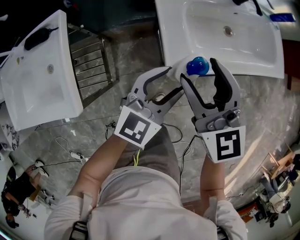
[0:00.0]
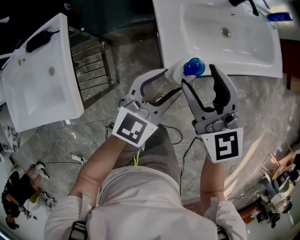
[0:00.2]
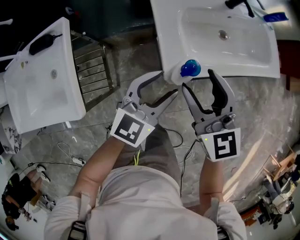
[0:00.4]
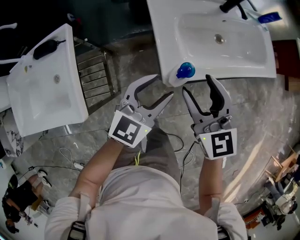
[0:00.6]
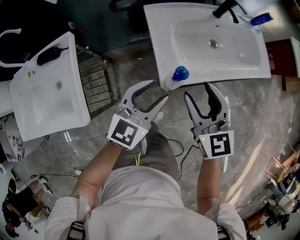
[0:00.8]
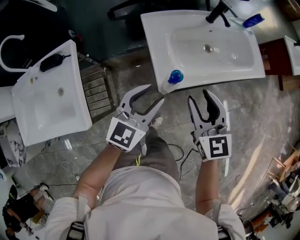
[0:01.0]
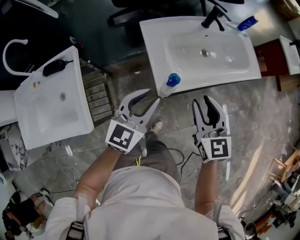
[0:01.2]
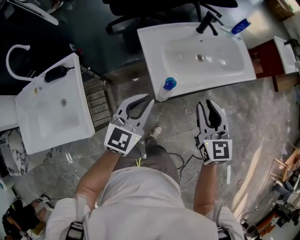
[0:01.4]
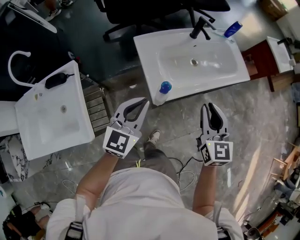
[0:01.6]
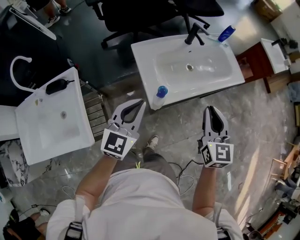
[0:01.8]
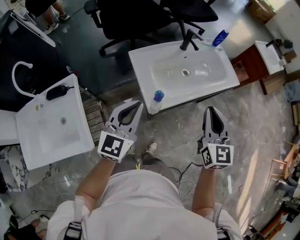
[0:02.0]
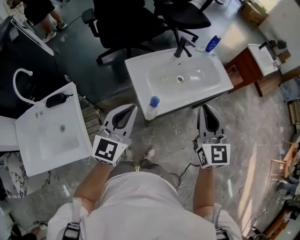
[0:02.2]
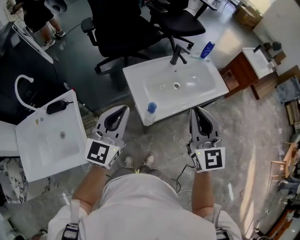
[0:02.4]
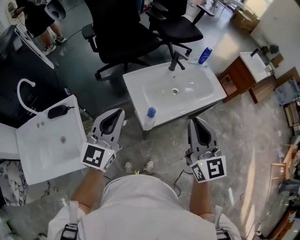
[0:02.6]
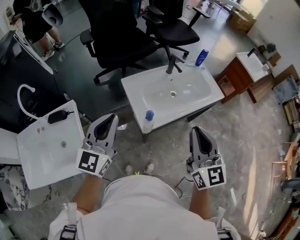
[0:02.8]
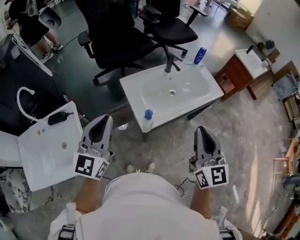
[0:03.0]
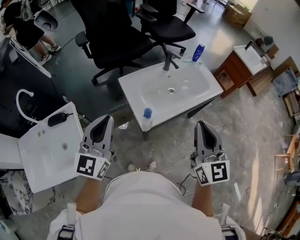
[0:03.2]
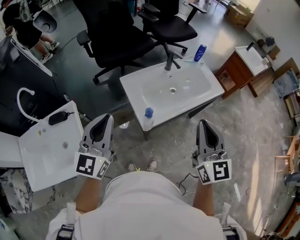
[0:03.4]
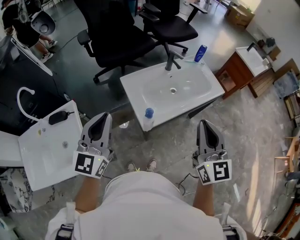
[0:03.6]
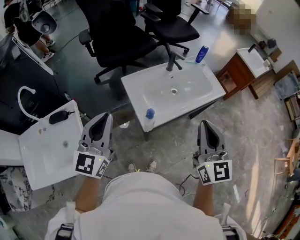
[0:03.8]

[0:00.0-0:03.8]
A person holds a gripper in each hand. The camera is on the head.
0:00.0 to 0:01.2: The left gripper goes some 10 cm upward, and closes, while the right gripper goes approximately 10 cm to the right and backward, and closes up.
0:01.2 to 0:02.6: The grippers both shift upward by some 20 cm. The left gripper closes up, while the right gripper rotates about 20 degrees, and closes.
0:02.6 to 0:03.8: The grippers stay close to where they were, moving slightly.

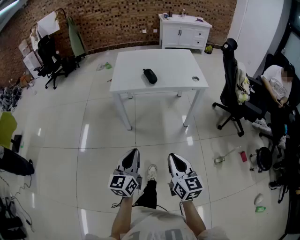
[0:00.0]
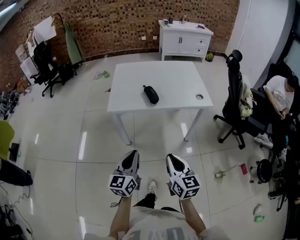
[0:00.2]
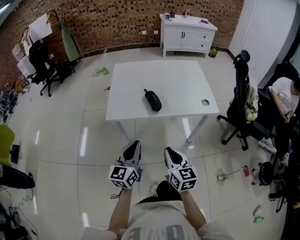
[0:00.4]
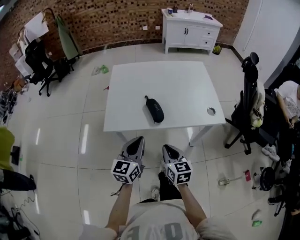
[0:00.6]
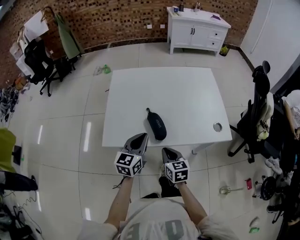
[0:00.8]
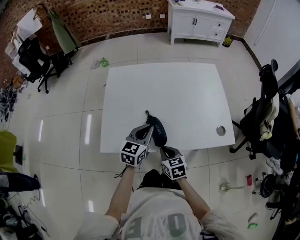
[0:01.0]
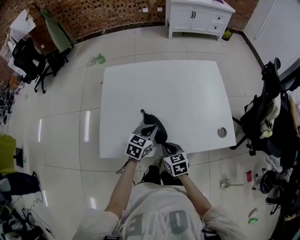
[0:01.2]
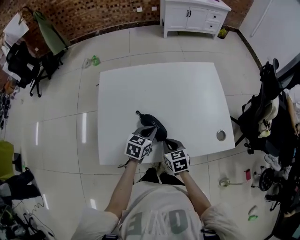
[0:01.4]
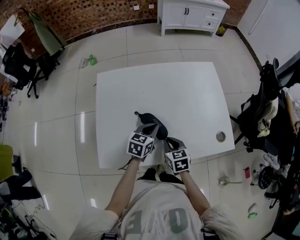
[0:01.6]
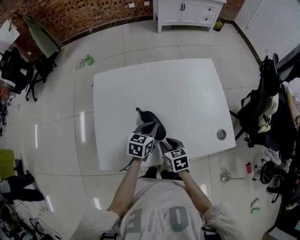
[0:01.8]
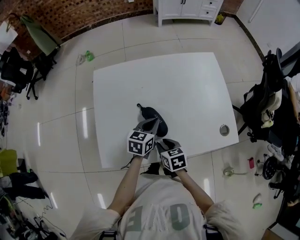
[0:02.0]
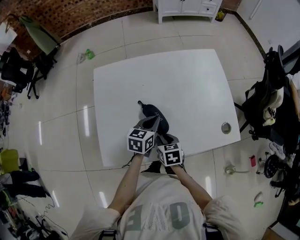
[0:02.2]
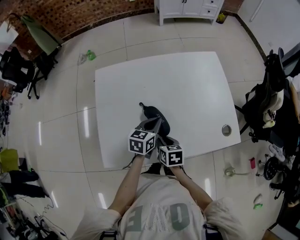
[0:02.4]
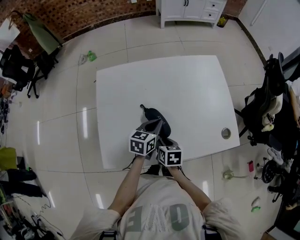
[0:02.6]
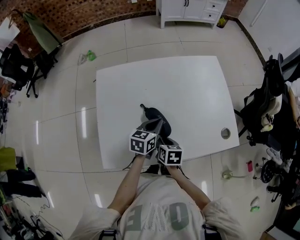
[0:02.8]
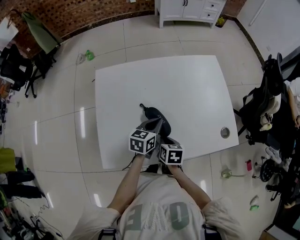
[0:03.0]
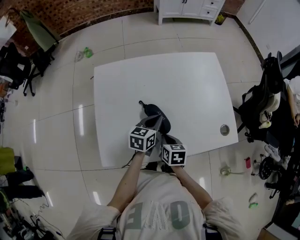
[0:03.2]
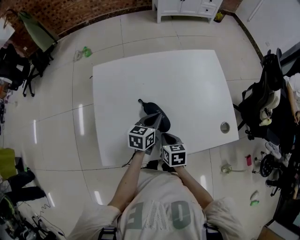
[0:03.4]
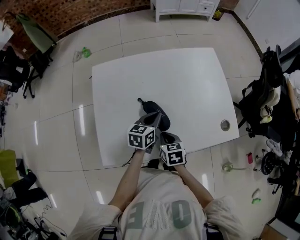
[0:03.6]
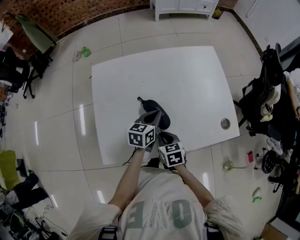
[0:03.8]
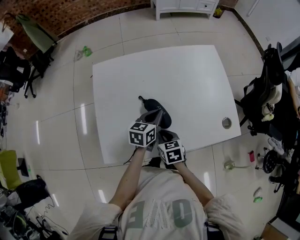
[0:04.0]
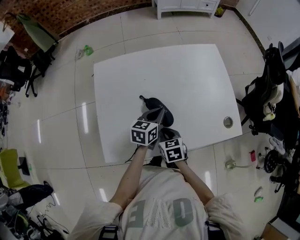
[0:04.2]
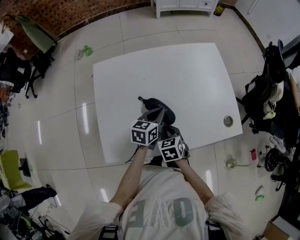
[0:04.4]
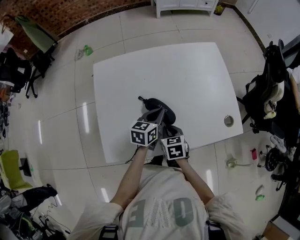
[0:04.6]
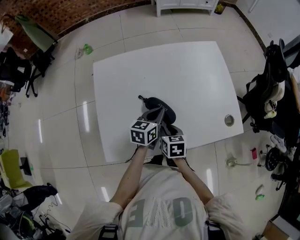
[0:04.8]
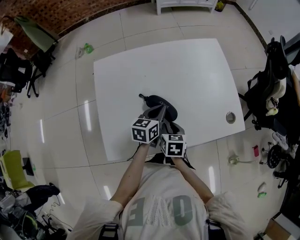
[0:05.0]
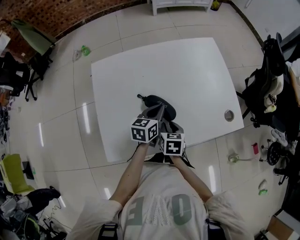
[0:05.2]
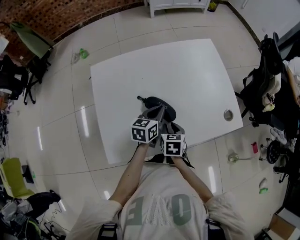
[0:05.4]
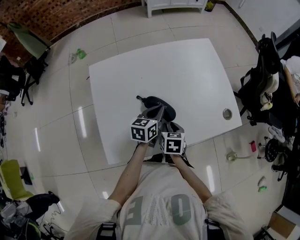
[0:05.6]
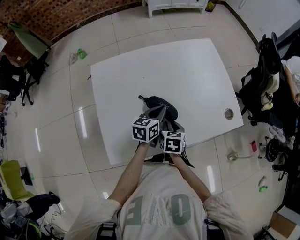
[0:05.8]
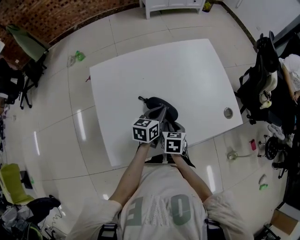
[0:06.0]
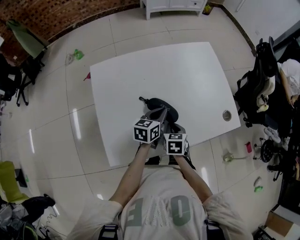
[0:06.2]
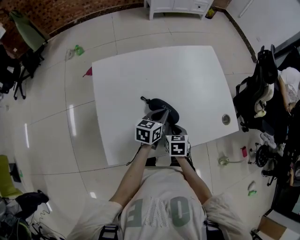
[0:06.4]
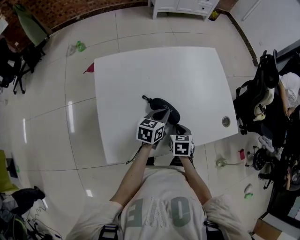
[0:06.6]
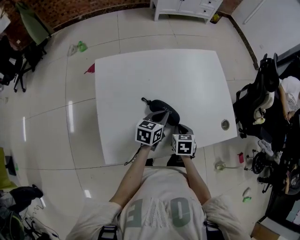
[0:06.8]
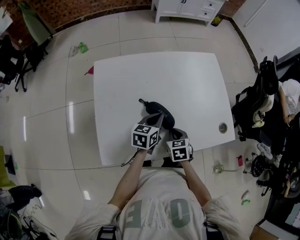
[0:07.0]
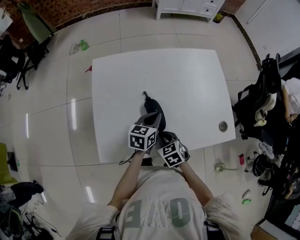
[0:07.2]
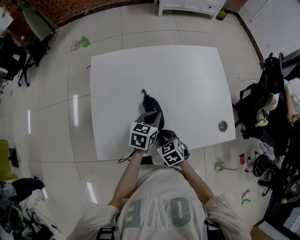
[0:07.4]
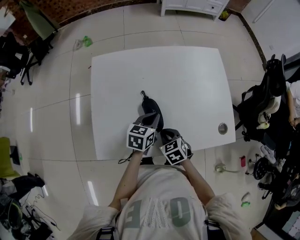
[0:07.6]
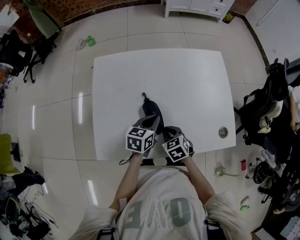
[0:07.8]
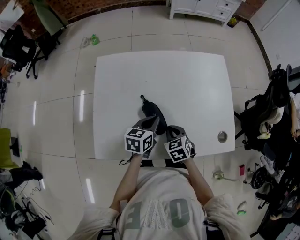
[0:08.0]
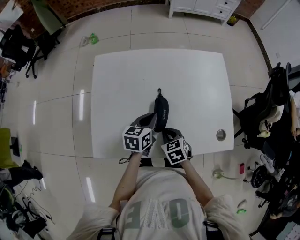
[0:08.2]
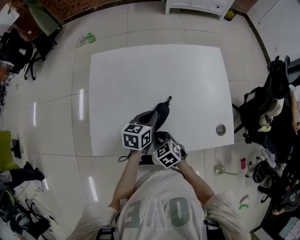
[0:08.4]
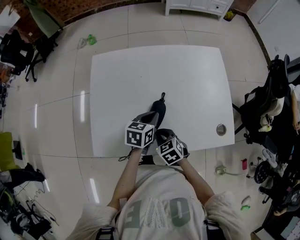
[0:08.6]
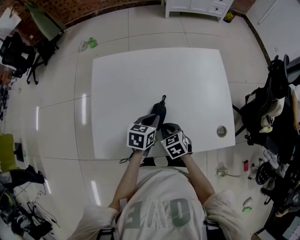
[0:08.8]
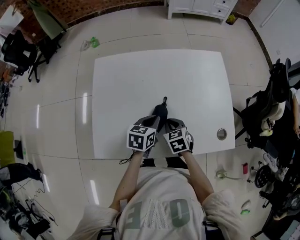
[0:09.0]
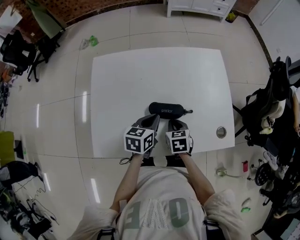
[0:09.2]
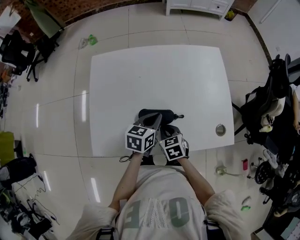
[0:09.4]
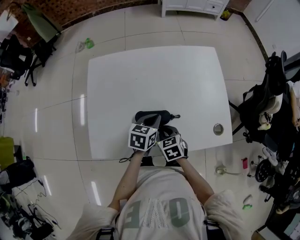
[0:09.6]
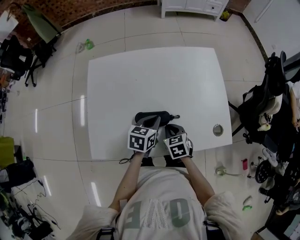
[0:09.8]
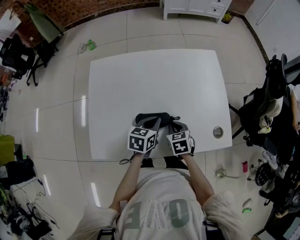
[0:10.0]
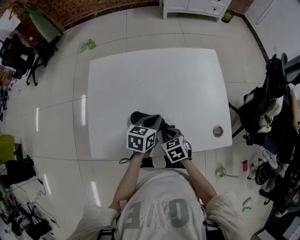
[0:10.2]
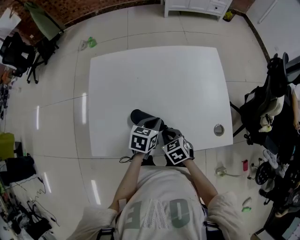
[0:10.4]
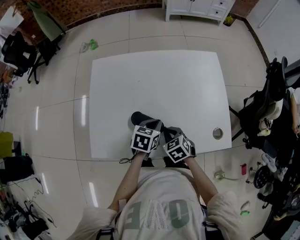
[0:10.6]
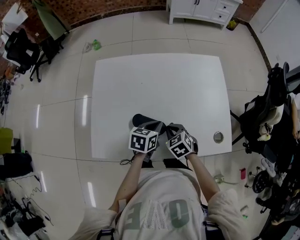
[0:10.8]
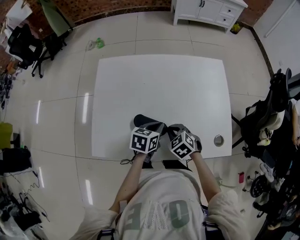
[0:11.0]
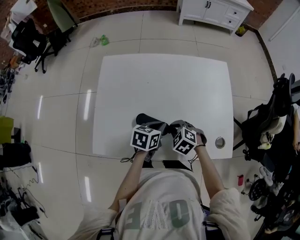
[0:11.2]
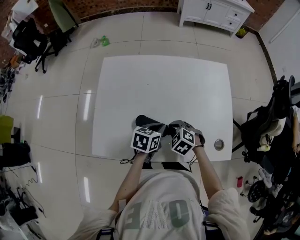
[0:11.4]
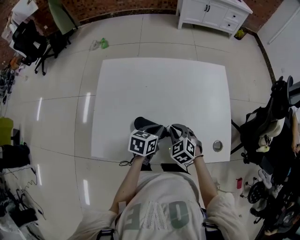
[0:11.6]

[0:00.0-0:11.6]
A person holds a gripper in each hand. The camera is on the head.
0:00.0 to 0:01.4: The two grippers travel together, forward, roughly 70 cm. The left gripper angles its fingers downward, by approximately 30 degrees, while the right gripper points its fingers about 30 degrees further downward.
0:01.4 to 0:02.8: The right gripper turns by some 30 degrees, and opens up.
0:02.8 to 0:04.4: The right gripper swivels approximately 30 degrees, and closes up.
0:04.4 to 0:05.8: The right gripper turns by about 30 degrees, and opens its fingers.
0:05.8 to 0:07.2: The right gripper swivels approximately 40 degrees, and closes up.
0:07.2 to 0:08.8: The right gripper moves left and right over approximately 5 cm, changing direction 2 times.
0:10.2 to 0:11.6: The right gripper is displaced forward by some 5 cm, and changes its angle by about 30 degrees.

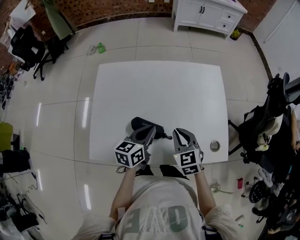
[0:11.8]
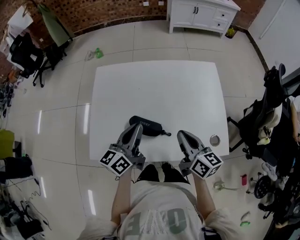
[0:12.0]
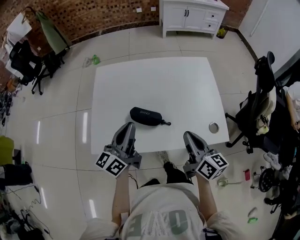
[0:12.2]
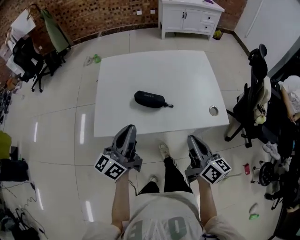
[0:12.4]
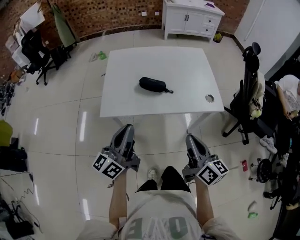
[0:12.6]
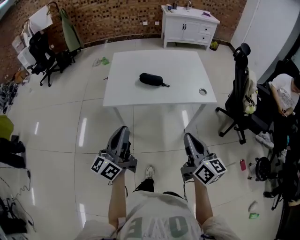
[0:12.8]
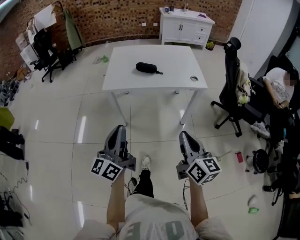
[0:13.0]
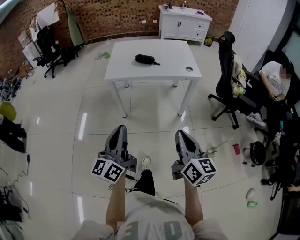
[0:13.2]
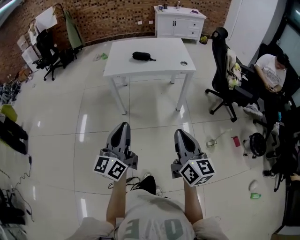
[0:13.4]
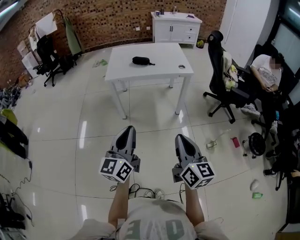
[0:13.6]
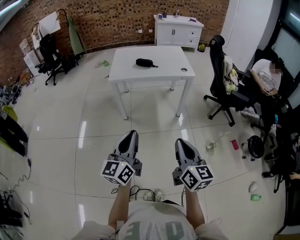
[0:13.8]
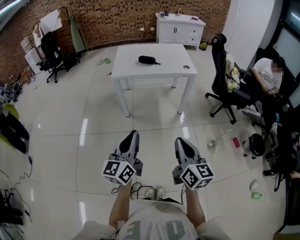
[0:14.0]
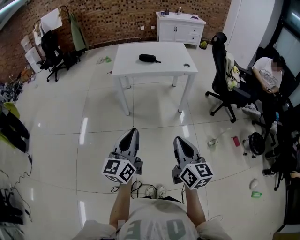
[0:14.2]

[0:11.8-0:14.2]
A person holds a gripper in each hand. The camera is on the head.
0:11.8 to 0:13.0: The pair of grippers is taken backward, some 70 cm. The left gripper points its fingers about 40 degrees further upward, while the right gripper tilts its fingers roughly 30 degrees upward.
0:13.0 to 0:14.2: The two grippers go about 30 cm backward.

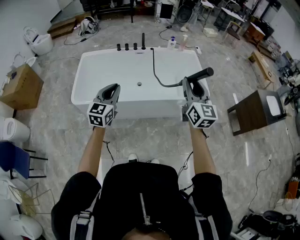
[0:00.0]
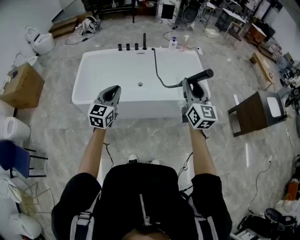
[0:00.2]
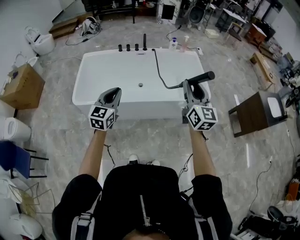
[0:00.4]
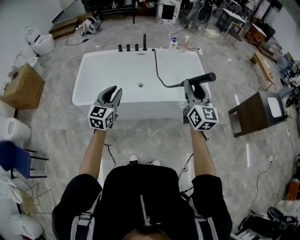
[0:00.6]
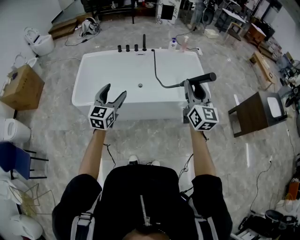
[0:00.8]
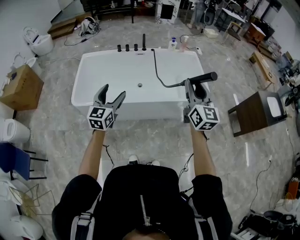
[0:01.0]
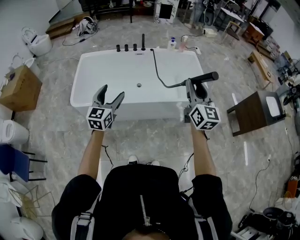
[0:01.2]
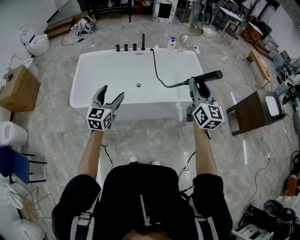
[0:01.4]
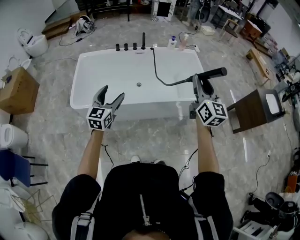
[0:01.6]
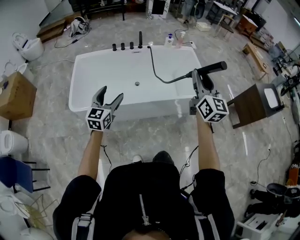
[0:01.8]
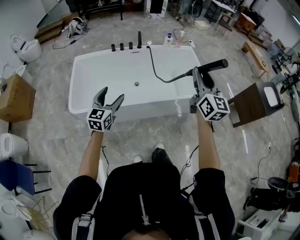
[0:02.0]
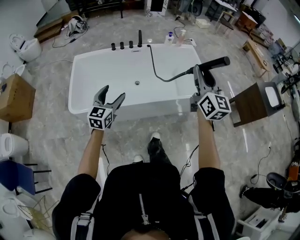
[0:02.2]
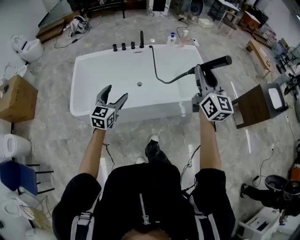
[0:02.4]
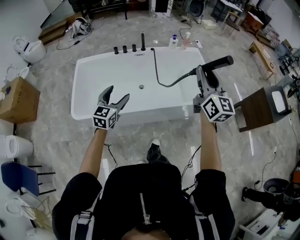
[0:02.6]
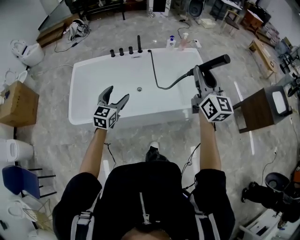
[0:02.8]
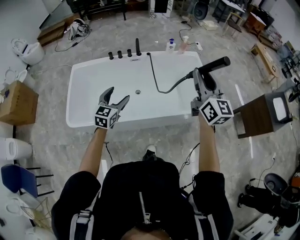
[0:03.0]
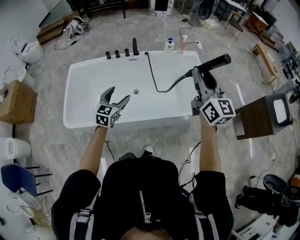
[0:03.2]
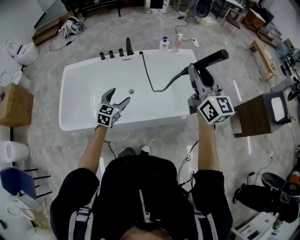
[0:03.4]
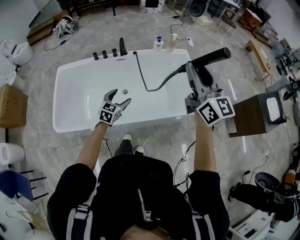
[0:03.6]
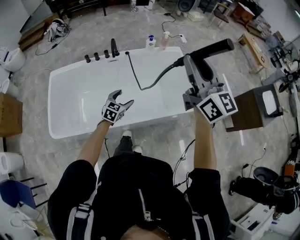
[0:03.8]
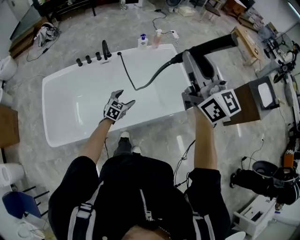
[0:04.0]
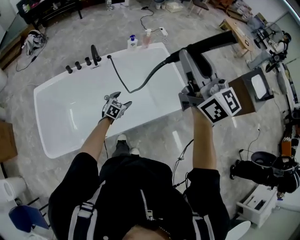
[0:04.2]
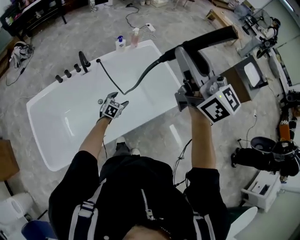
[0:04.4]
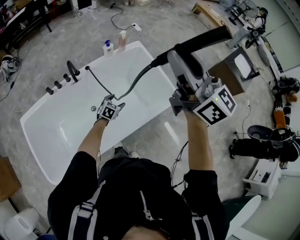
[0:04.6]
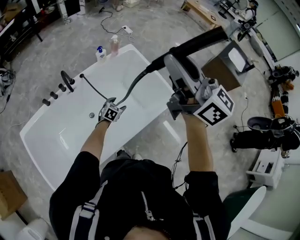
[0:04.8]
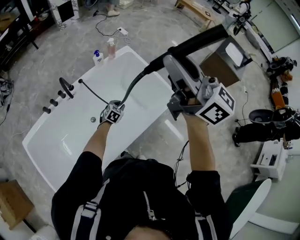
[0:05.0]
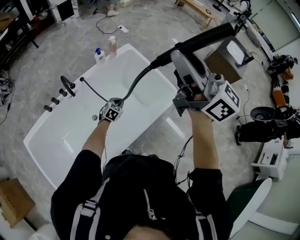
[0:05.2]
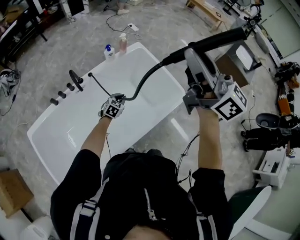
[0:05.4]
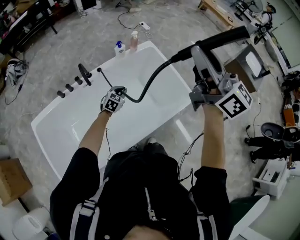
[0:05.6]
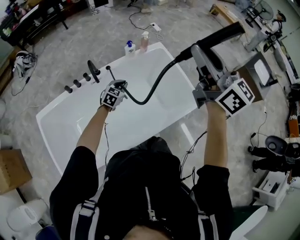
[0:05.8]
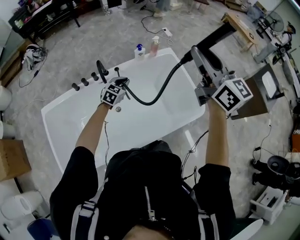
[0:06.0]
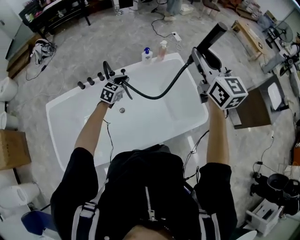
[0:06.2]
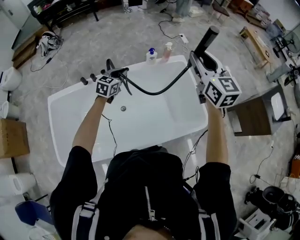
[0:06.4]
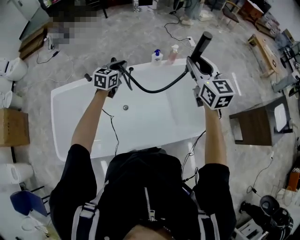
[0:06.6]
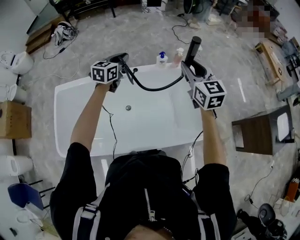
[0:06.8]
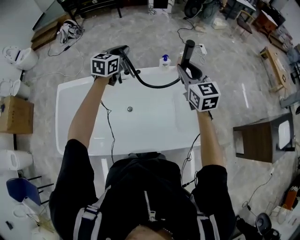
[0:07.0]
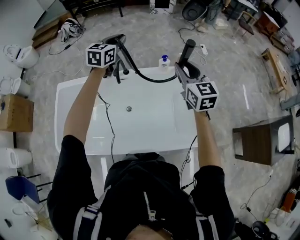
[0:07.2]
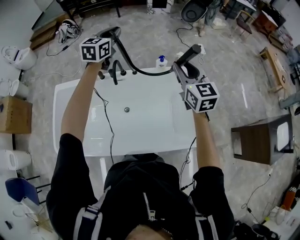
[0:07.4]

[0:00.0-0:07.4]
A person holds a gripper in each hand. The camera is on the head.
0:00.0 to 0:01.4: The left gripper shifts by roughly 5 cm, and opens.
0:01.4 to 0:03.0: The grippers both shift forward by some 20 cm.
0:03.0 to 0:04.4: The right gripper travels upward and forward by about 15 cm, while the left gripper is displaced downward, forward and to the right by roughly 40 cm, and turns by approximately 40 degrees.
0:04.4 to 0:06.0: The left gripper shifts roughly 20 cm forward, to the left and upward, and closes up; the right gripper goes approximately 15 cm forward and downward.
0:06.0 to 0:07.4: The left gripper shifts some 35 cm upward and forward, and swivels some 40 degrees. Meanwhile the right gripper travels forward and downward by some 20 cm, and rotates about 20 degrees.
